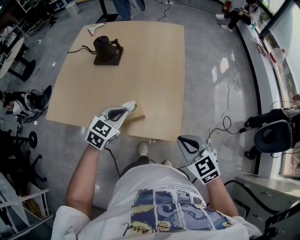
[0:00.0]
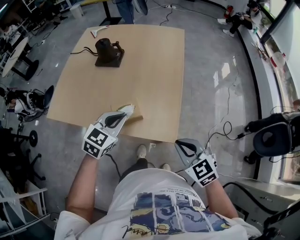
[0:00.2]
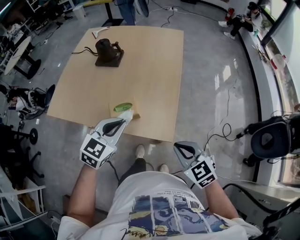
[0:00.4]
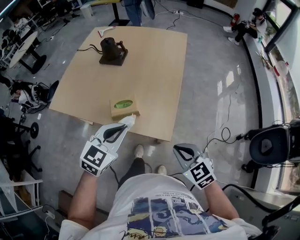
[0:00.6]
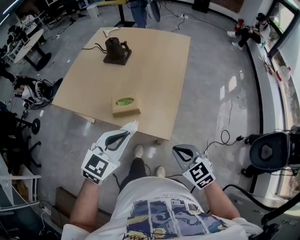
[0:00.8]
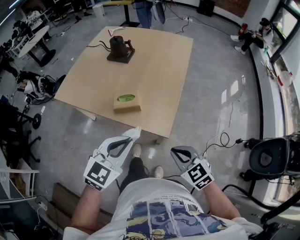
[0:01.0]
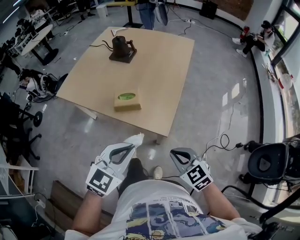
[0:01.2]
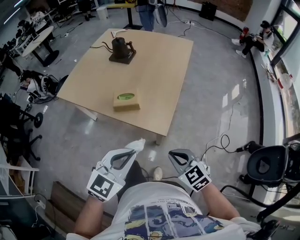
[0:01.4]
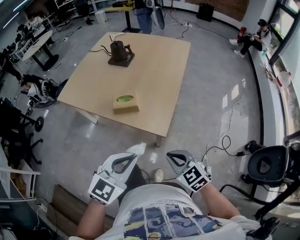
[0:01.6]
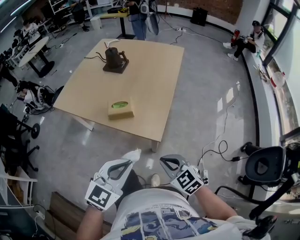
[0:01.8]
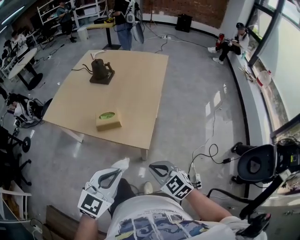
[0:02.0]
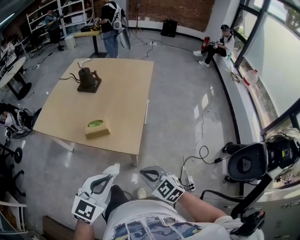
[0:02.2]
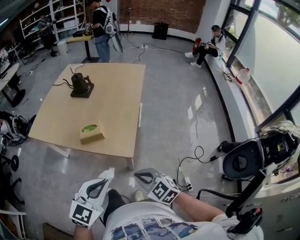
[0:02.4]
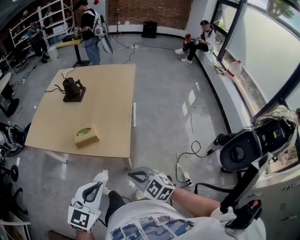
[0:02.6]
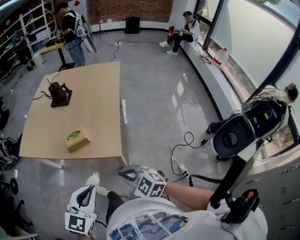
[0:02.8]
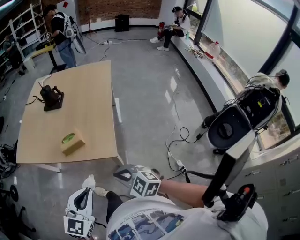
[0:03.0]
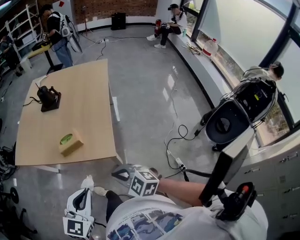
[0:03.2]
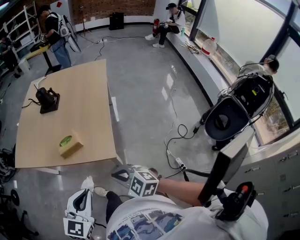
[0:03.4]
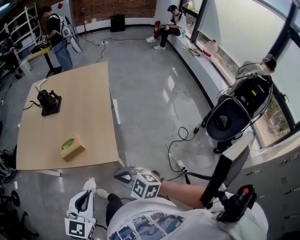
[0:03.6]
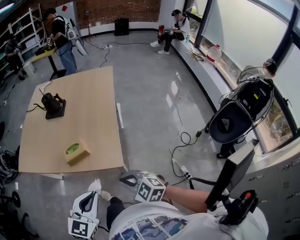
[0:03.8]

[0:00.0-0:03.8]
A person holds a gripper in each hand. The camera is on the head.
0:00.0 to 0:01.2: The left gripper goes approximately 25 cm backward; the right gripper moves backward, approximately 10 cm.
0:01.2 to 0:02.6: The left gripper is displaced backward by some 5 cm.
0:02.6 to 0:03.8: The left gripper changes place by some 5 cm.

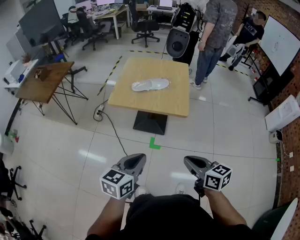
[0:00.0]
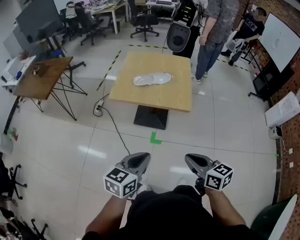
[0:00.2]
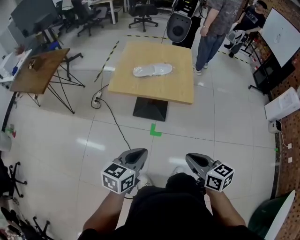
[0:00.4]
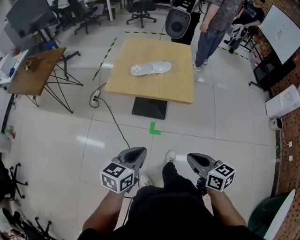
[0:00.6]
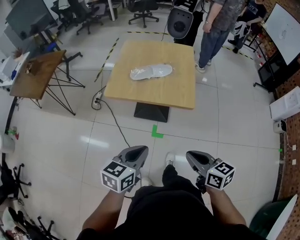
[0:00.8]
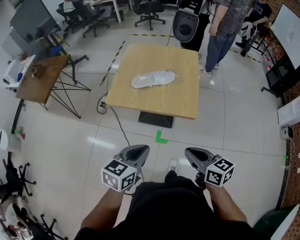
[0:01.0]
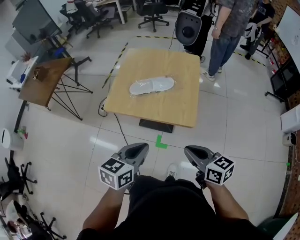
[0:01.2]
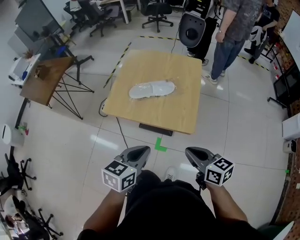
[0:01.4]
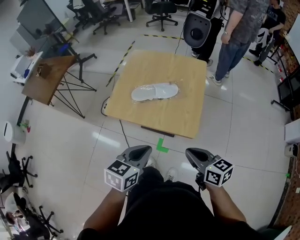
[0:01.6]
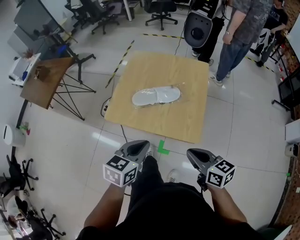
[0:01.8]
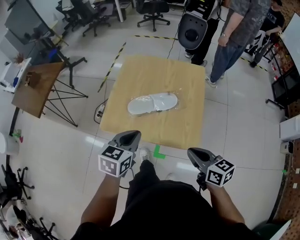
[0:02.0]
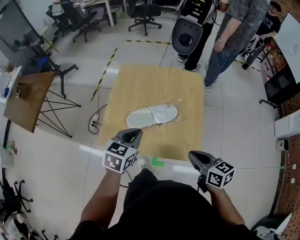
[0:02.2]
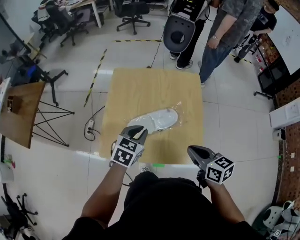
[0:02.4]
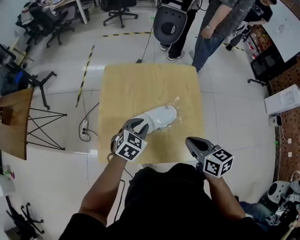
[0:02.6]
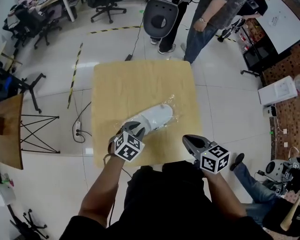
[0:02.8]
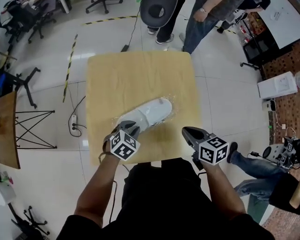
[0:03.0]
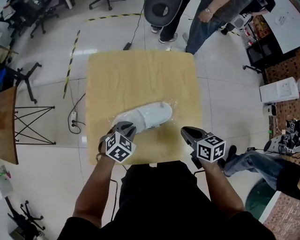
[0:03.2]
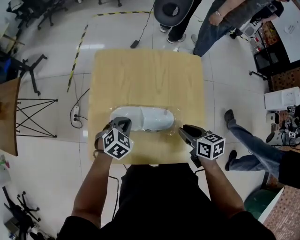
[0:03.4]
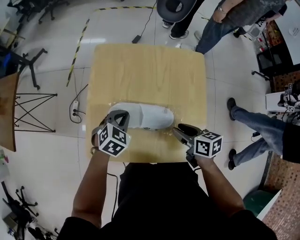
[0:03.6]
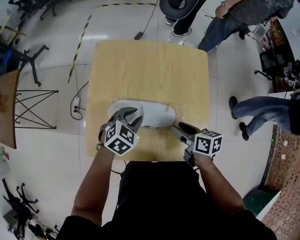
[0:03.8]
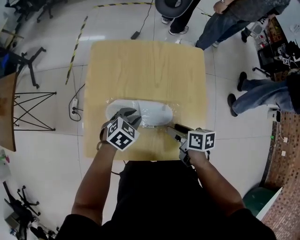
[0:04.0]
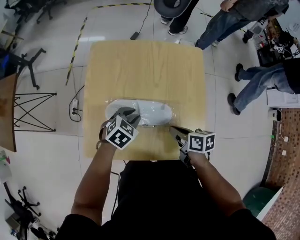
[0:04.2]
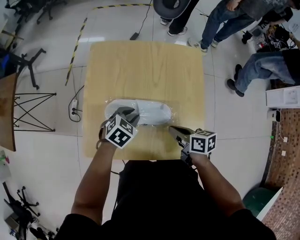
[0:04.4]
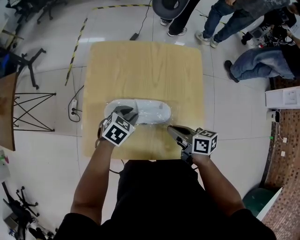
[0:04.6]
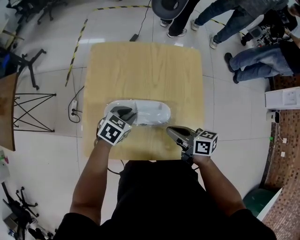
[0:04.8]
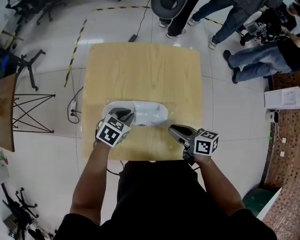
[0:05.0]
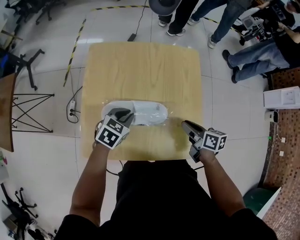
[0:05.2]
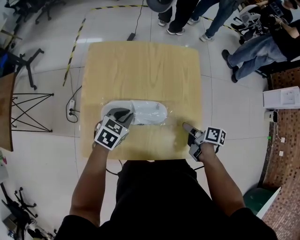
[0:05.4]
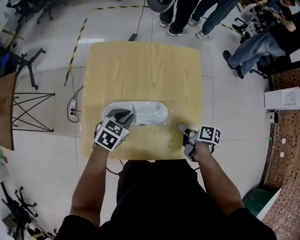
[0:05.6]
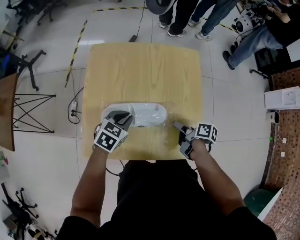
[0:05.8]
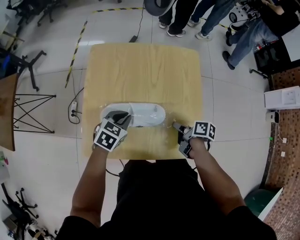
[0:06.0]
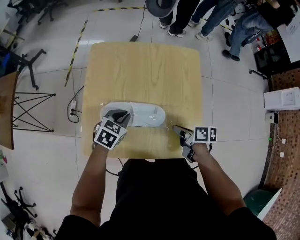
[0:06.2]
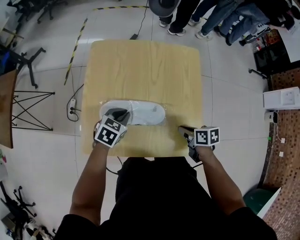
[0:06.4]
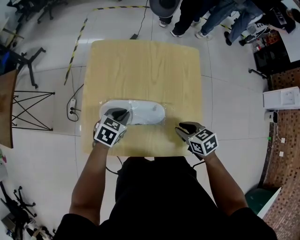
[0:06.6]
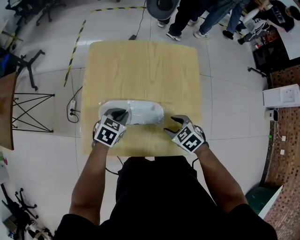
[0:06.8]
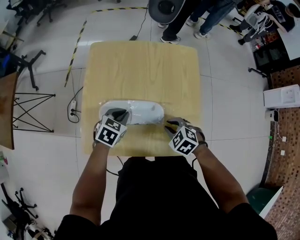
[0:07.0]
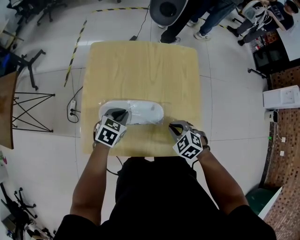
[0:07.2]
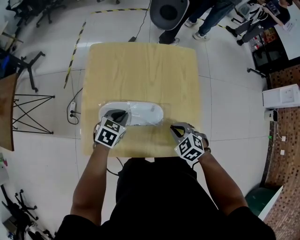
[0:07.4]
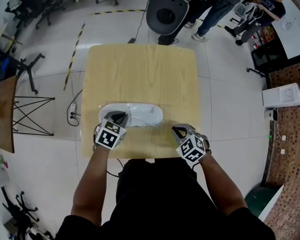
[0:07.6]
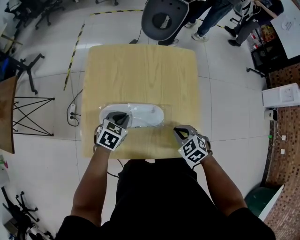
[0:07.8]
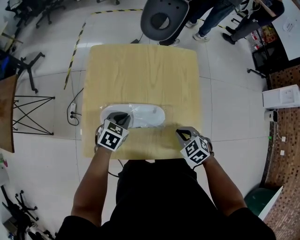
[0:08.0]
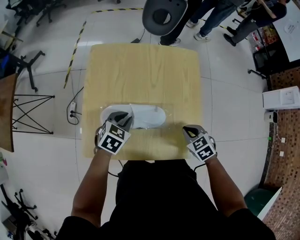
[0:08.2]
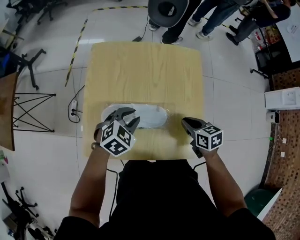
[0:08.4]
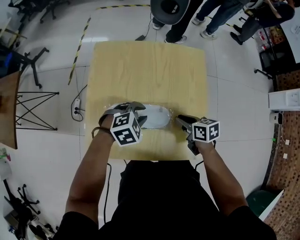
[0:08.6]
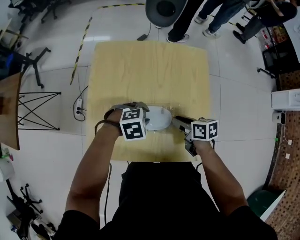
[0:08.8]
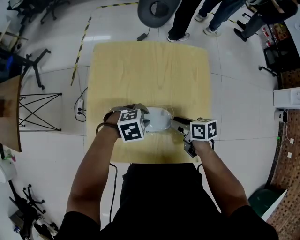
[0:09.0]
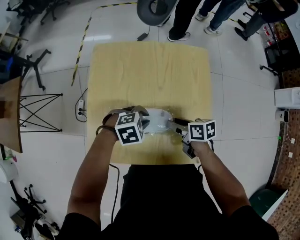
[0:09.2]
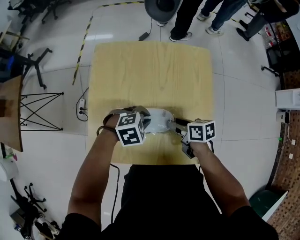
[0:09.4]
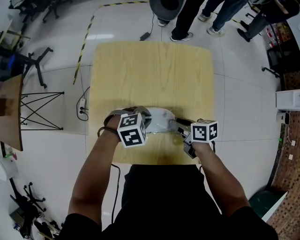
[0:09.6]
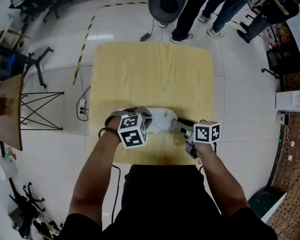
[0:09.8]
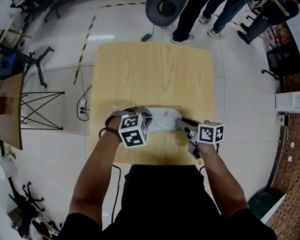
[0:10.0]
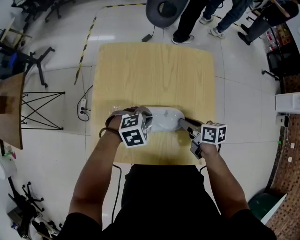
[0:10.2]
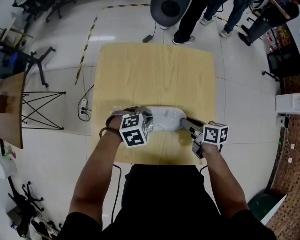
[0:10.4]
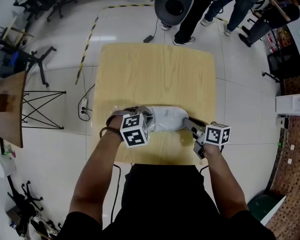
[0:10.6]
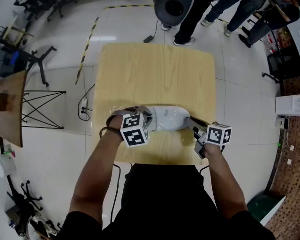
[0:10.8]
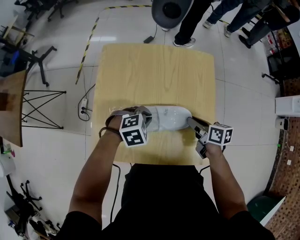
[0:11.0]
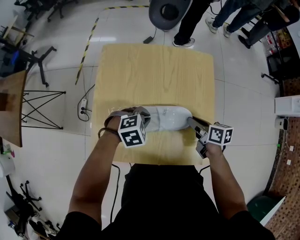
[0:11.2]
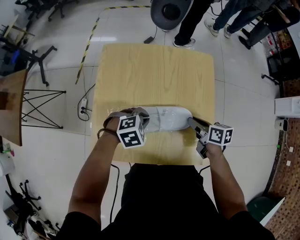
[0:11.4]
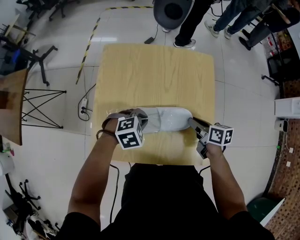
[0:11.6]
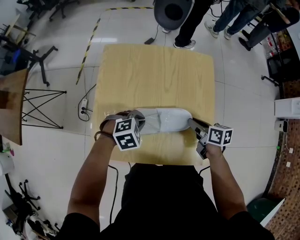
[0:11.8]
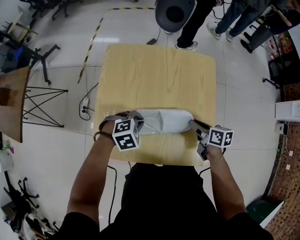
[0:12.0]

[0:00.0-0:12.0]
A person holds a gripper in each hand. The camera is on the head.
0:00.0 to 0:01.6: Both grippers move forward, approximately 25 cm.
0:01.6 to 0:03.0: The right gripper changes place by approximately 25 cm, and turns by some 30 degrees. Meanwhile the left gripper ends up approximately 40 cm from where it was, and rotates roughly 50 degrees.
0:03.0 to 0:04.4: The right gripper heads downward, covering approximately 10 cm, rotates some 20 degrees, and opens, then closes again.
0:04.4 to 0:06.0: The right gripper moves downward, about 5 cm, rotates about 30 degrees, and opens and closes again.
0:06.0 to 0:07.6: The right gripper rolls counterclockwise, seen from behind, by some 90 degrees, and opens, then closes once more.
0:07.6 to 0:09.0: The right gripper changes place by approximately 10 cm, twists roughly 60 degrees clockwise, seen from behind, and opens its fingers; the left gripper moves approximately 5 cm, changes its angle by approximately 50 degrees, and opens up.
0:09.0 to 0:10.4: The left gripper closes.
0:10.4 to 0:12.0: The left gripper shifts by some 5 cm.

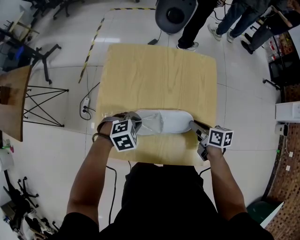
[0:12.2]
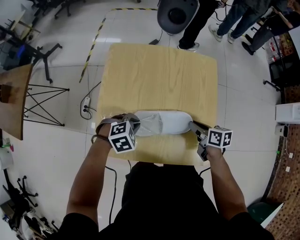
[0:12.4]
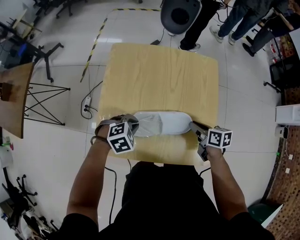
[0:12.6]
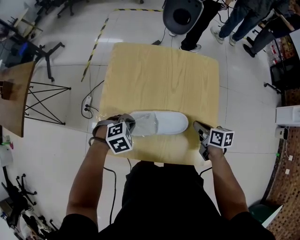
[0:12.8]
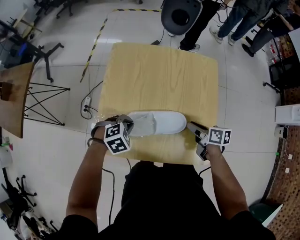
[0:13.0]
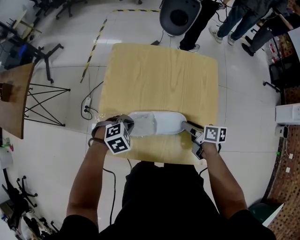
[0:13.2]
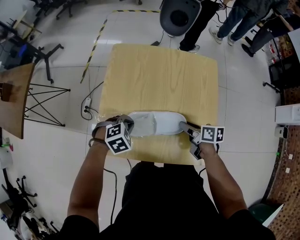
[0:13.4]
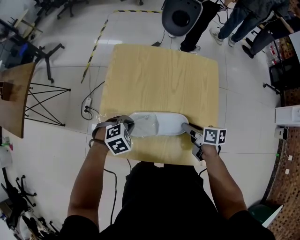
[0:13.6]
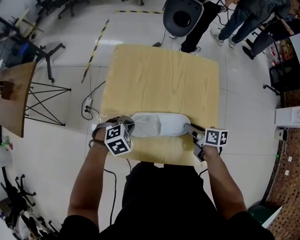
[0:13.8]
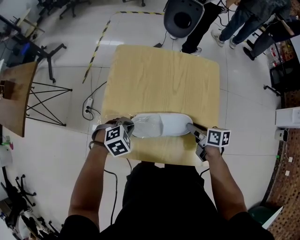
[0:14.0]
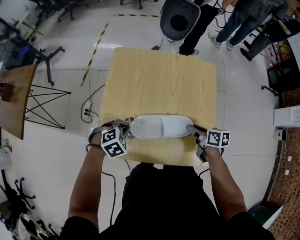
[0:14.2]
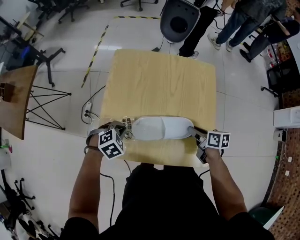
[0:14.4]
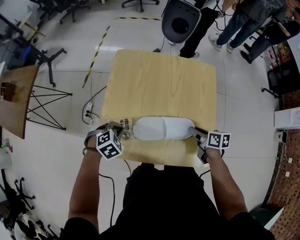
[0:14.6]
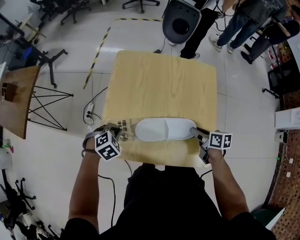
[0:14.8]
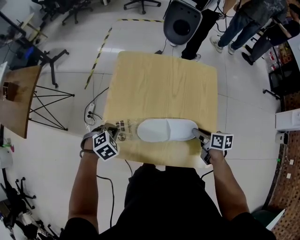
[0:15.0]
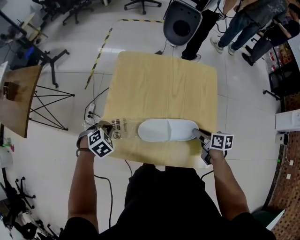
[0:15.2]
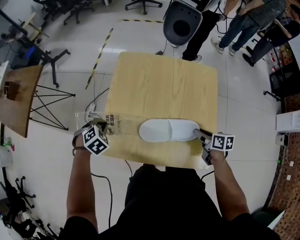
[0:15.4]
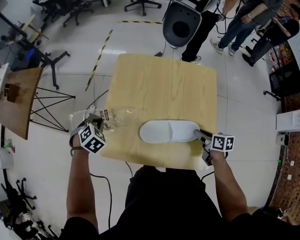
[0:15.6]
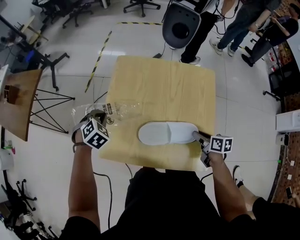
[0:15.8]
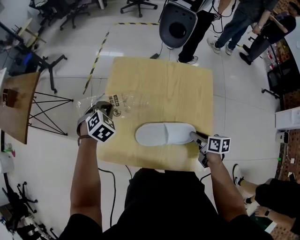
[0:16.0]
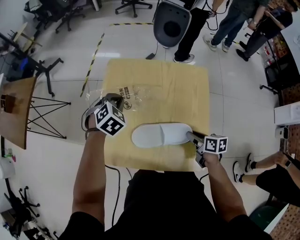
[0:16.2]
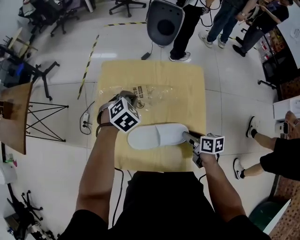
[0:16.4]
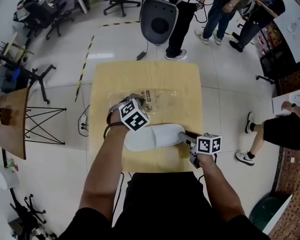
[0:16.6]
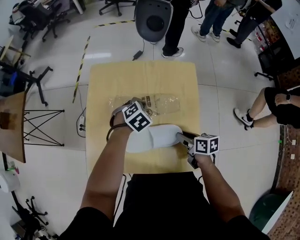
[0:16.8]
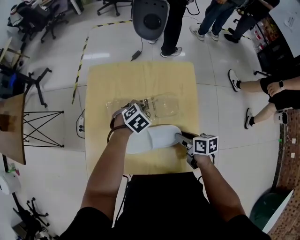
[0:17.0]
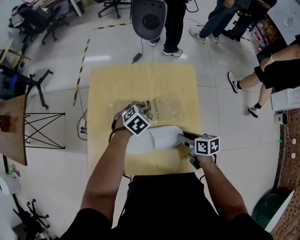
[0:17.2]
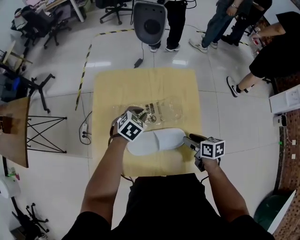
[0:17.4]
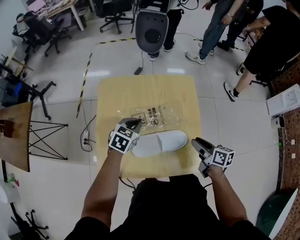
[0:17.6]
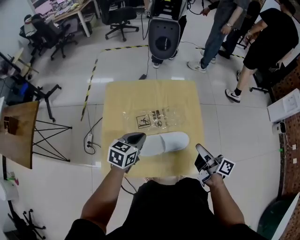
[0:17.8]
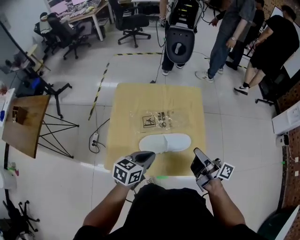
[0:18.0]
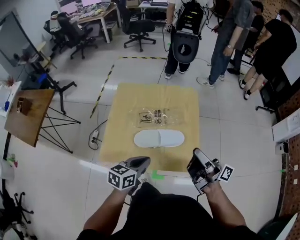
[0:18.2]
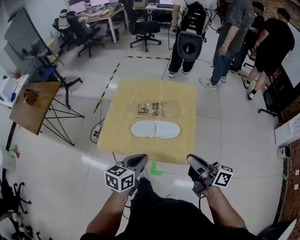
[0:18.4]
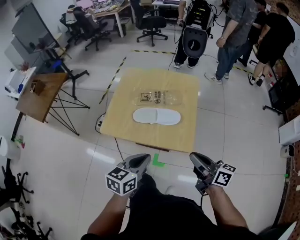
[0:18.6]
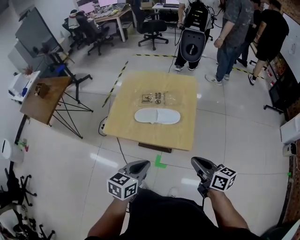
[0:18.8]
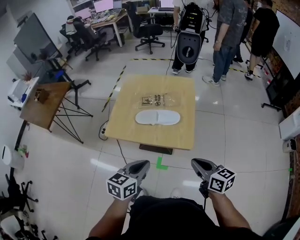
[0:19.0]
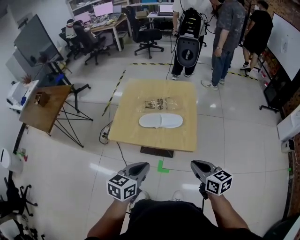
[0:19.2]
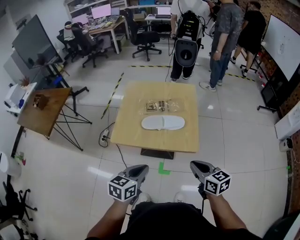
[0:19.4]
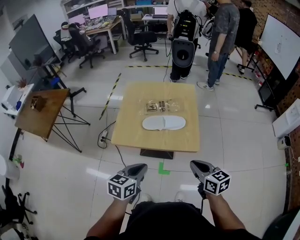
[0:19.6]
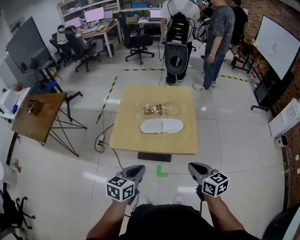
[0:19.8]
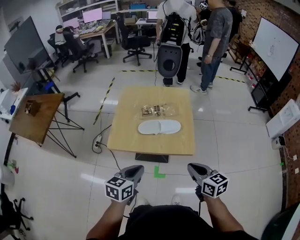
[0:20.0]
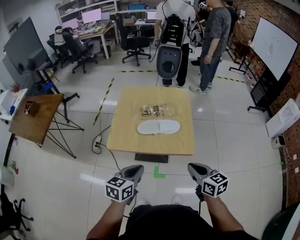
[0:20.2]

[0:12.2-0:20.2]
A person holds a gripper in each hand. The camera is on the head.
0:12.2 to 0:13.8: The left gripper moves some 5 cm.
0:13.8 to 0:15.4: The right gripper is displaced to the right by roughly 5 cm. The left gripper travels to the left by approximately 15 cm, and turns by about 20 degrees.
0:15.4 to 0:17.0: The left gripper goes some 30 cm to the right.
0:17.0 to 0:18.6: The grippers both shift backward and upward by about 40 cm. The right gripper tilts its fingers approximately 40 degrees upward, and closes. Meanwhile the left gripper points its fingers about 40 degrees further upward.
0:18.6 to 0:20.2: The right gripper moves backward and to the left, roughly 10 cm, and swivels roughly 40 degrees, while the left gripper is displaced to the left by about 10 cm.
